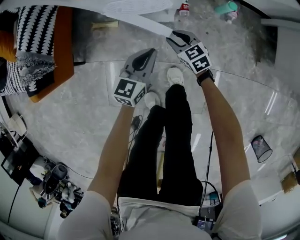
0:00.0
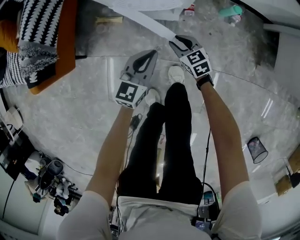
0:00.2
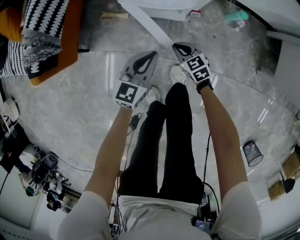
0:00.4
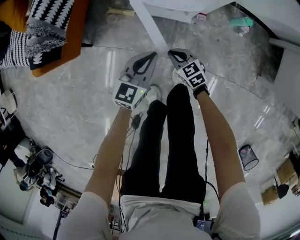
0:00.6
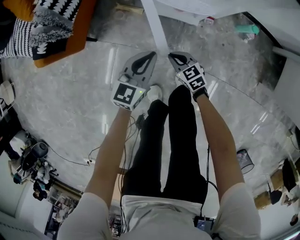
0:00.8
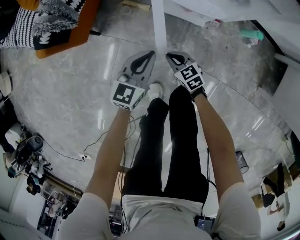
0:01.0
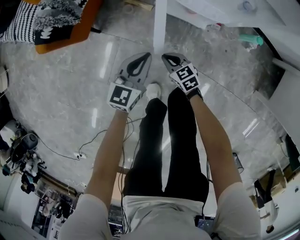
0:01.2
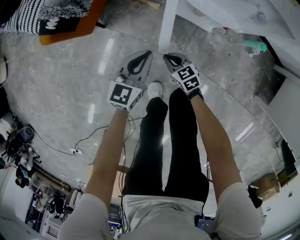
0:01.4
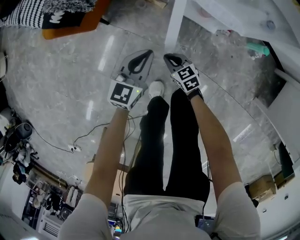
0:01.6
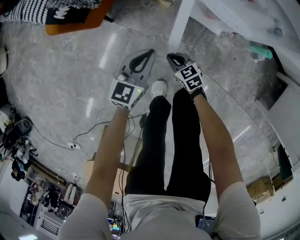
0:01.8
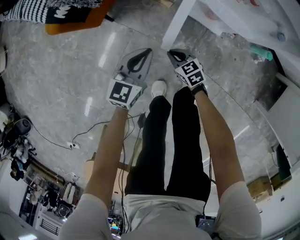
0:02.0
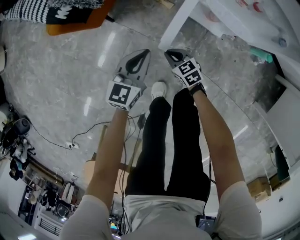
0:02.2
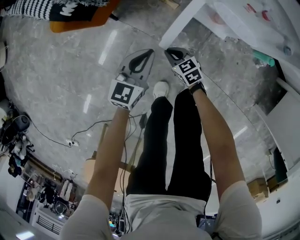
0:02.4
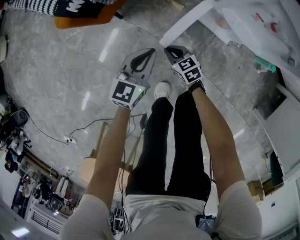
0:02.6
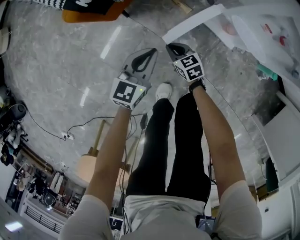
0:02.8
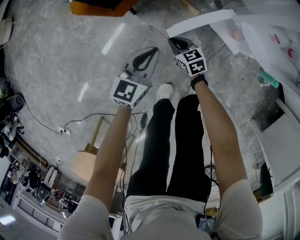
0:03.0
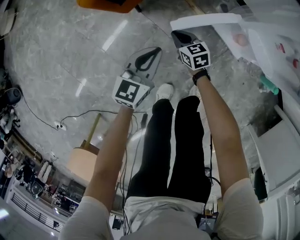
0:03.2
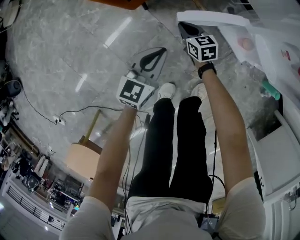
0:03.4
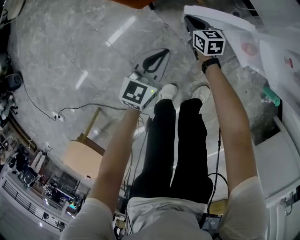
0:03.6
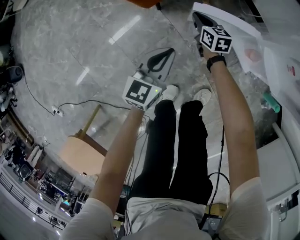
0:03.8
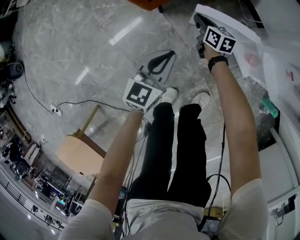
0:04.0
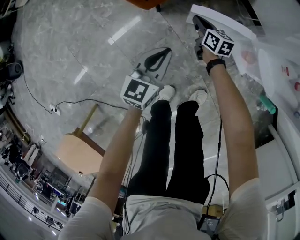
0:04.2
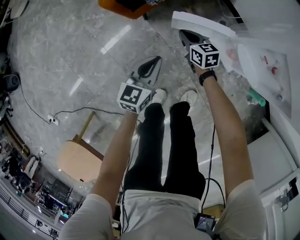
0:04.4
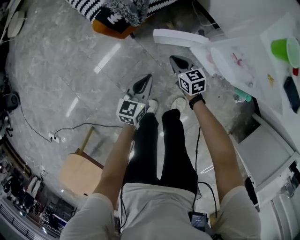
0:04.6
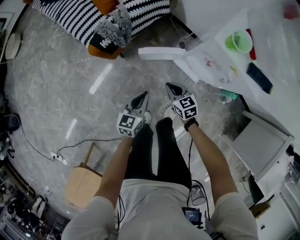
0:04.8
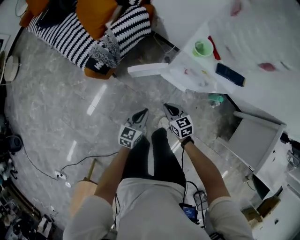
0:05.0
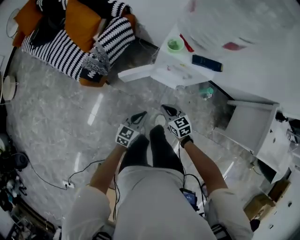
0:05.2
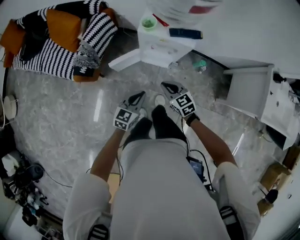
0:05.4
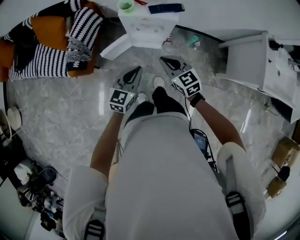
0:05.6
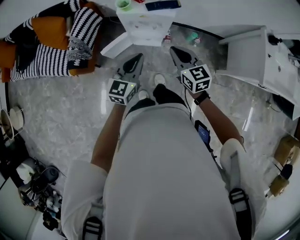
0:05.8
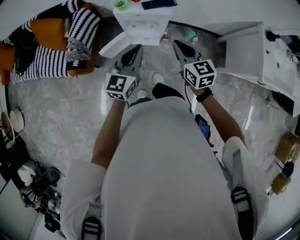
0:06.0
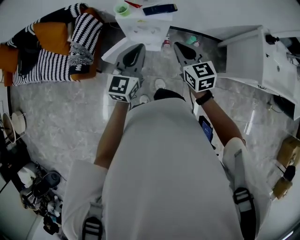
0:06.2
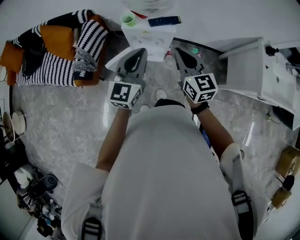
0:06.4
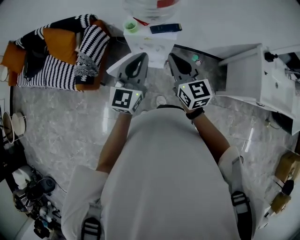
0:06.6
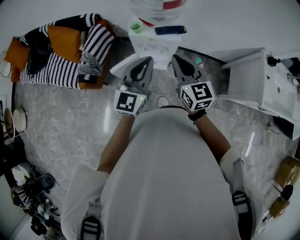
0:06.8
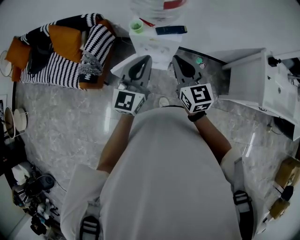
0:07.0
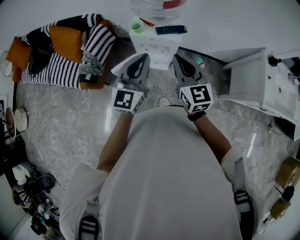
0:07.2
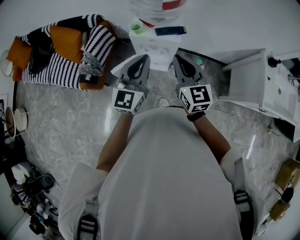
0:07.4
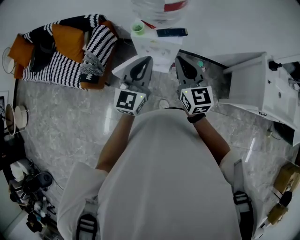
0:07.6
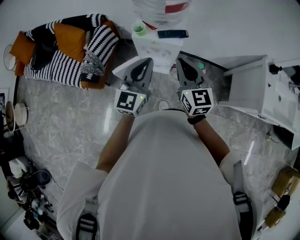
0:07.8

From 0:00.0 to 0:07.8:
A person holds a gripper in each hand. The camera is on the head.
From 0:00.0 to 0:01.6: The left gripper shifts by approximately 25 cm, and changes its angle by some 20 degrees. Meanwhile the right gripper ends up about 25 cm from where it was, swivels some 20 degrees, and closes.
From 0:01.6 to 0:03.2: The left gripper shifts some 10 cm to the left and forward. Meanwhile the right gripper is displaced forward and to the left by roughly 20 cm.
From 0:03.2 to 0:04.6: The right gripper is displaced upward by about 20 cm. Meanwhile the left gripper goes approximately 10 cm upward.
From 0:04.6 to 0:06.2: The two grippers go some 50 cm upward. The left gripper changes its angle by roughly 40 degrees. The right gripper rotates some 50 degrees.
From 0:06.2 to 0:07.8: The grippers both shift upward by roughly 5 cm.

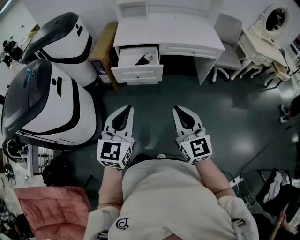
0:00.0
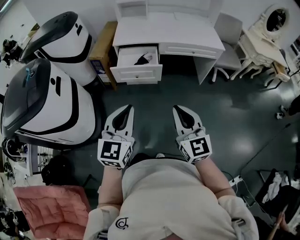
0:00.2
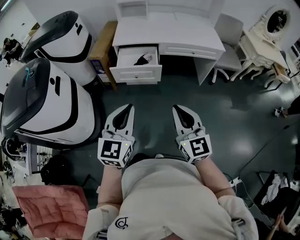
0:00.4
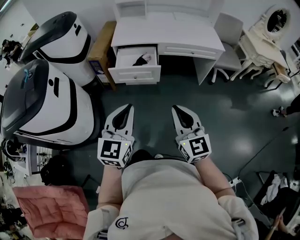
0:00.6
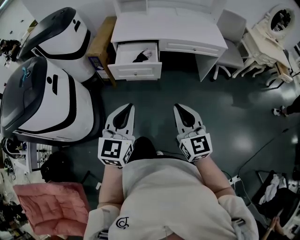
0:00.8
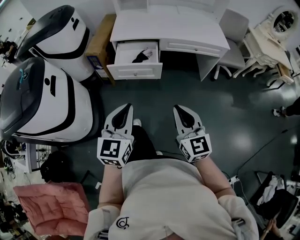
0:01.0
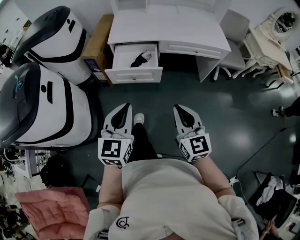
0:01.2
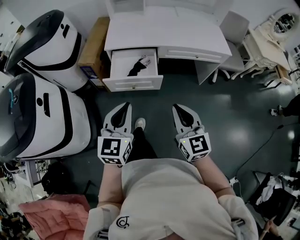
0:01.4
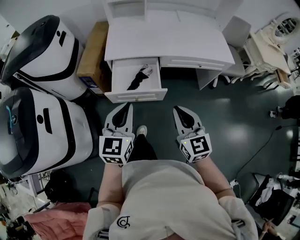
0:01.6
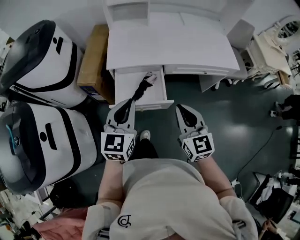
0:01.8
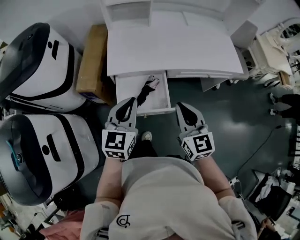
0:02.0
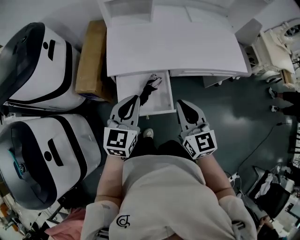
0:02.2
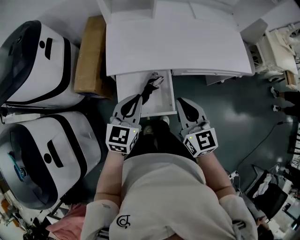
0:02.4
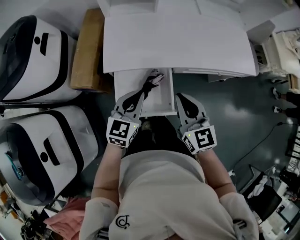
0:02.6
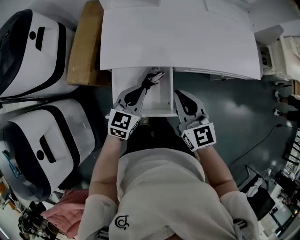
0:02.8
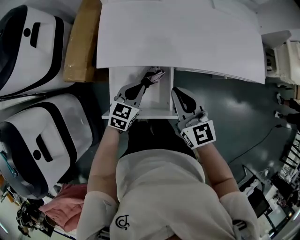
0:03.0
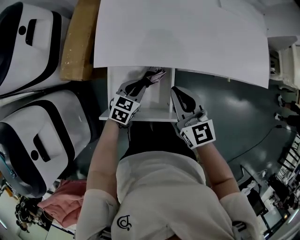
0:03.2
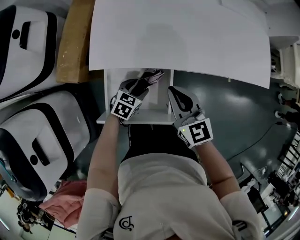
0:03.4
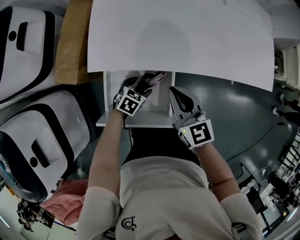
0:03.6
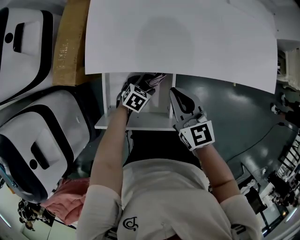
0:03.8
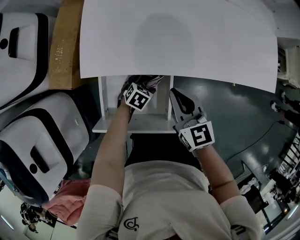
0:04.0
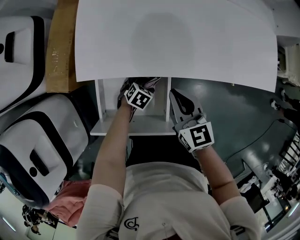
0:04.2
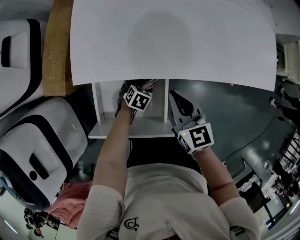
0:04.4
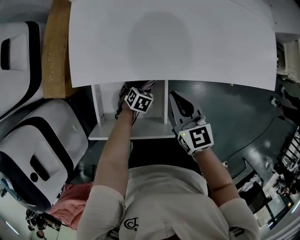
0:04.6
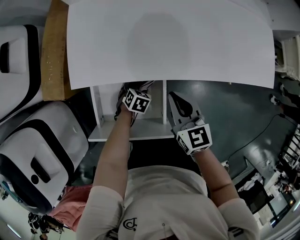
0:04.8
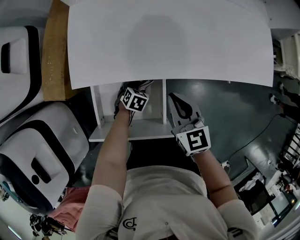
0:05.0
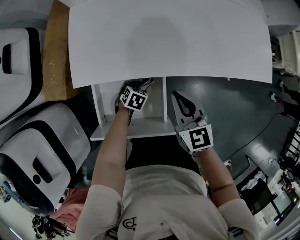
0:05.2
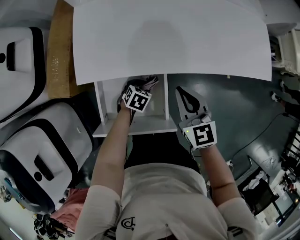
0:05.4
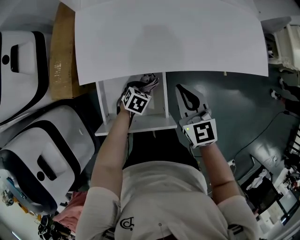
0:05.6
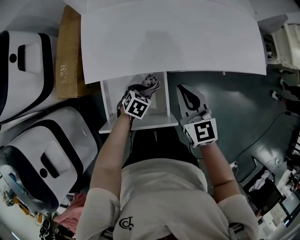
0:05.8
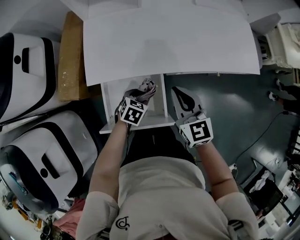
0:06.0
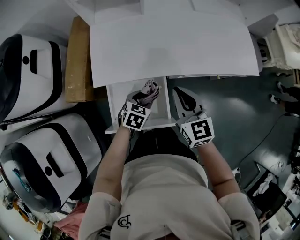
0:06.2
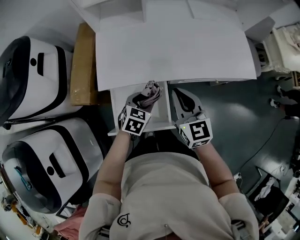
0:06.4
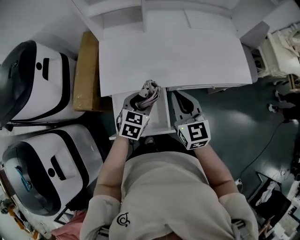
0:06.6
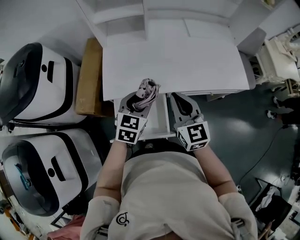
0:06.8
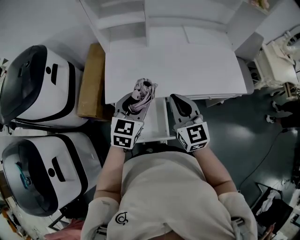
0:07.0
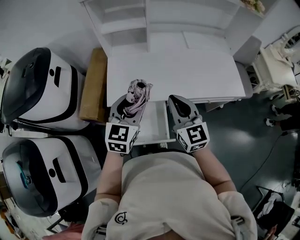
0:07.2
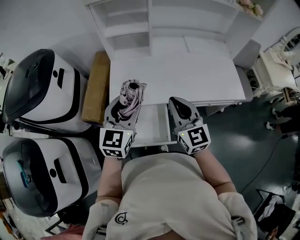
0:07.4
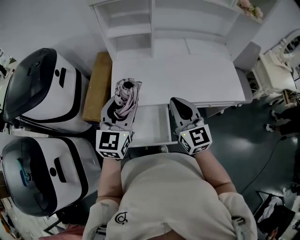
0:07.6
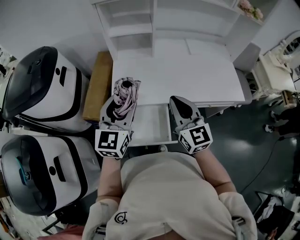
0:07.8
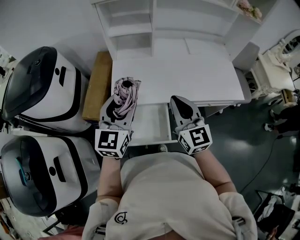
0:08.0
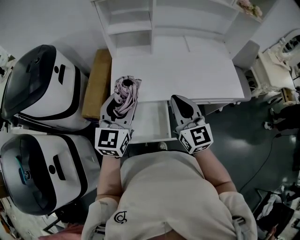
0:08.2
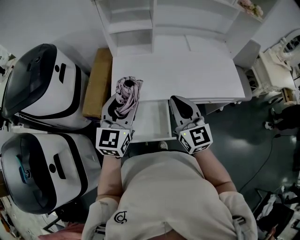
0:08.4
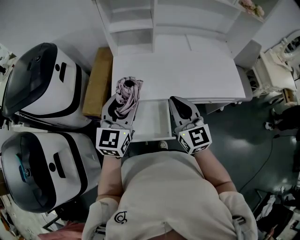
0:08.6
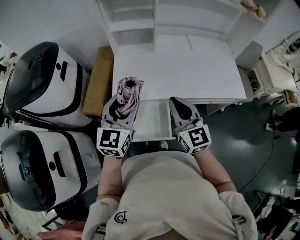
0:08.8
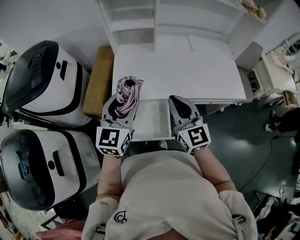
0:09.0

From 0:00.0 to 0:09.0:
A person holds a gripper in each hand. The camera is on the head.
From 0:00.0 to 0:01.6: Both grippers move forward, roughly 25 cm.
From 0:01.6 to 0:03.0: The right gripper travels forward by roughly 30 cm, while the left gripper shifts approximately 40 cm forward and downward, and rotates some 30 degrees.
From 0:03.0 to 0:04.4: The left gripper moves downward, approximately 25 cm, tips its fingers downward by about 40 degrees, and opens. The right gripper heads downward and forward, covering some 15 cm.
From 0:04.4 to 0:06.0: The left gripper shifts some 15 cm upward, and closes. Meanwhile the right gripper shifts approximately 10 cm upward.
From 0:06.0 to 0:07.6: The left gripper moves upward, approximately 40 cm, and tips its fingers upward by approximately 50 degrees; the right gripper moves upward, some 15 cm.
From 0:07.6 to 0:09.0: The grippers move only a little.

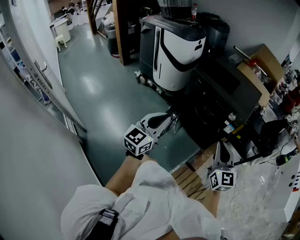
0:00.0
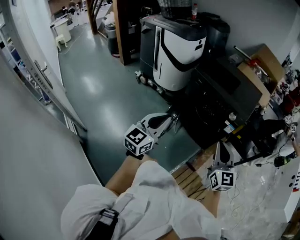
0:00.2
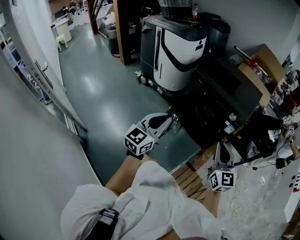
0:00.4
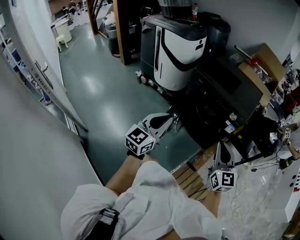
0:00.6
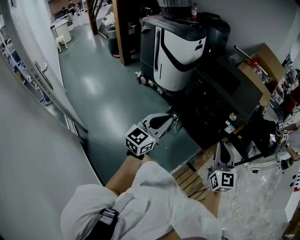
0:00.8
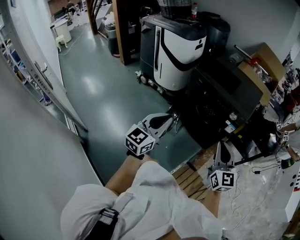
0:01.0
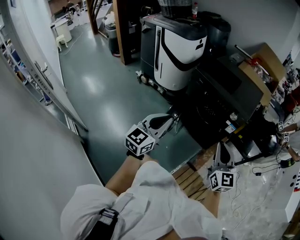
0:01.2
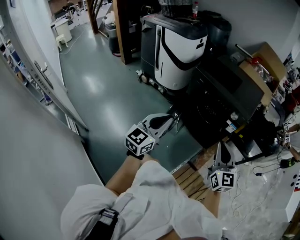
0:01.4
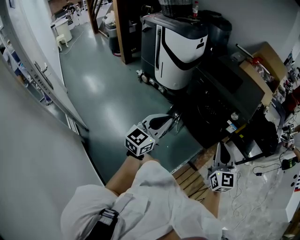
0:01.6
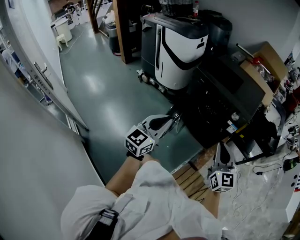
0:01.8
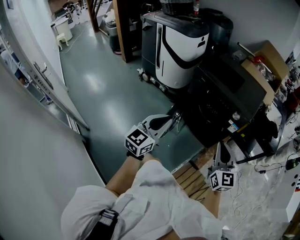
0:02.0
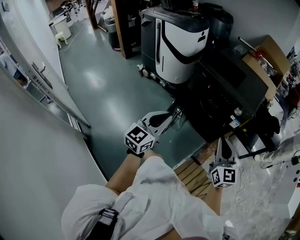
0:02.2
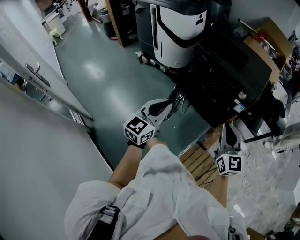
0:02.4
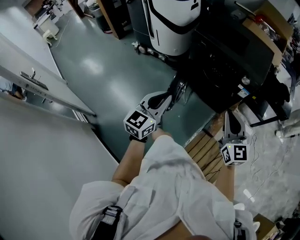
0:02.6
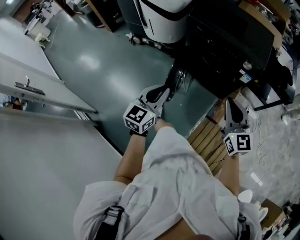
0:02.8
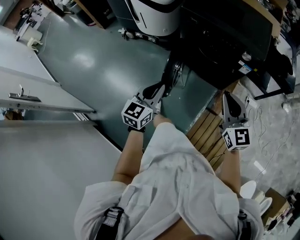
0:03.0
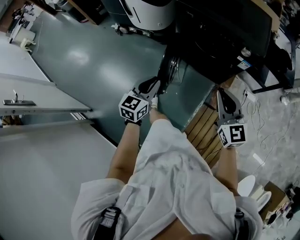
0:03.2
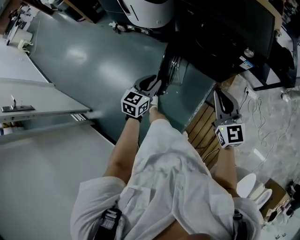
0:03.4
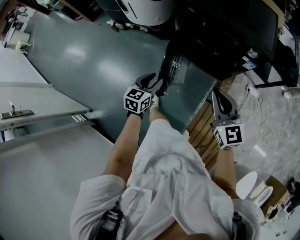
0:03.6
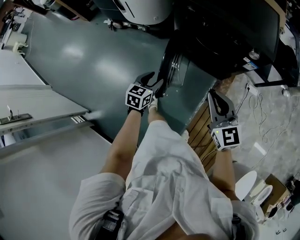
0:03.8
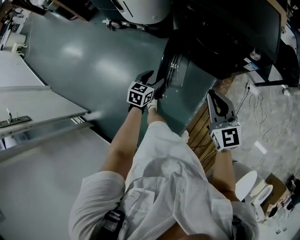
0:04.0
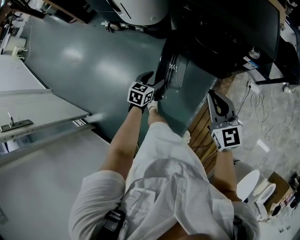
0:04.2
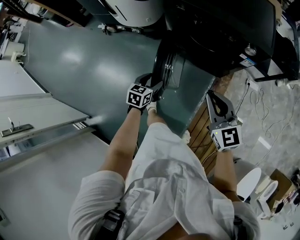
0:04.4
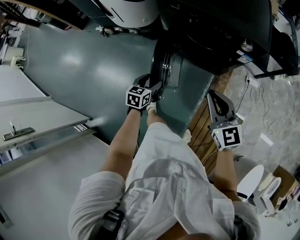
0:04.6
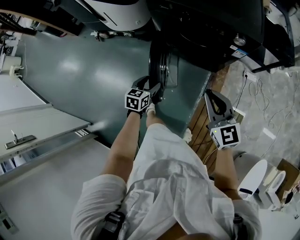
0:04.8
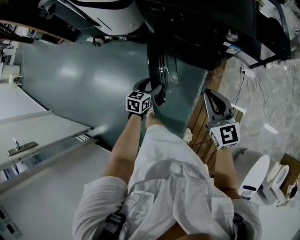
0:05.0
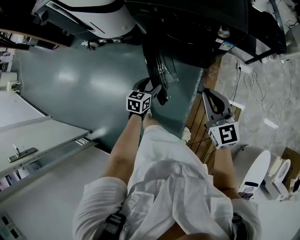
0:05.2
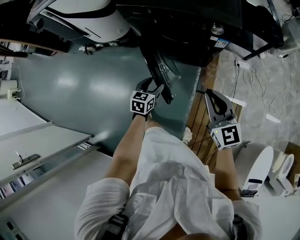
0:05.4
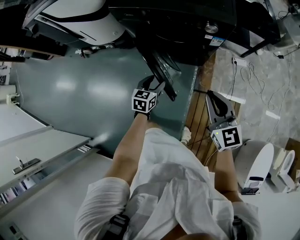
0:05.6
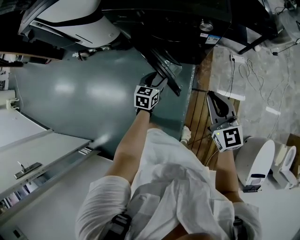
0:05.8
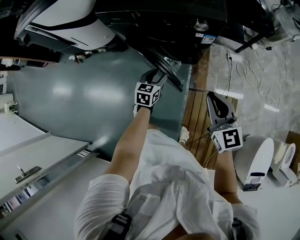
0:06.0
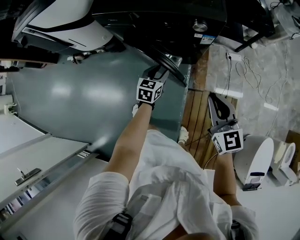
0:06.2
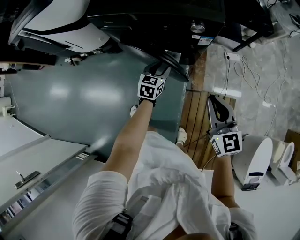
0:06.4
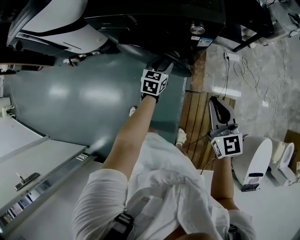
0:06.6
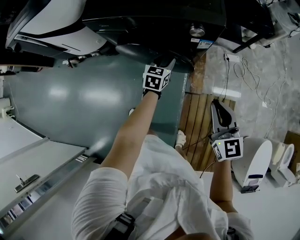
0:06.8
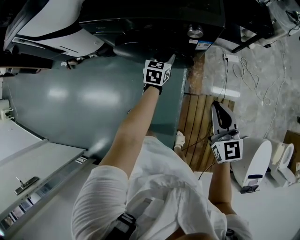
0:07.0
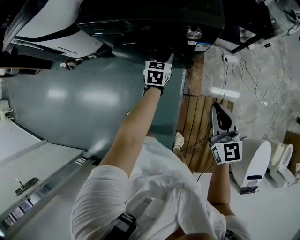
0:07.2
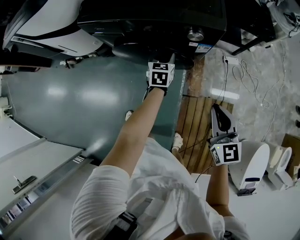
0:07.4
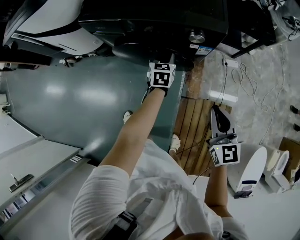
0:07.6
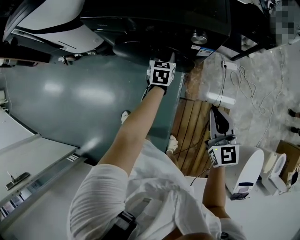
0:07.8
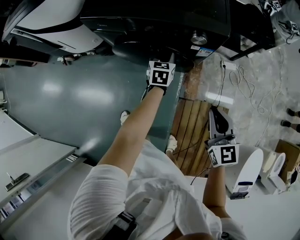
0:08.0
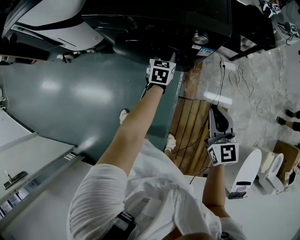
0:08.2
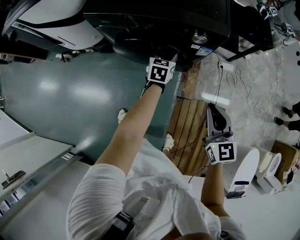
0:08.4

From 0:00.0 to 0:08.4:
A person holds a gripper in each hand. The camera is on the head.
From 0:00.0 to 0:01.4: Both grippers stay about where they are.
From 0:01.4 to 0:02.8: The left gripper moves downward and forward, about 10 cm. The right gripper travels forward by approximately 5 cm.
From 0:02.8 to 0:04.2: The right gripper is displaced downward, forward and to the left by about 15 cm. Meanwhile the left gripper is displaced downward and forward by about 35 cm, points its fingers about 30 degrees further downward, and opens.
From 0:04.2 to 0:05.6: Both grippers travel together to the right, roughly 15 cm.
From 0:05.6 to 0:07.0: The left gripper moves forward and to the right, roughly 25 cm, while the right gripper is displaced to the right by approximately 10 cm.
From 0:07.0 to 0:08.4: The grippers make only small movements.
